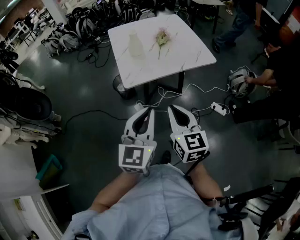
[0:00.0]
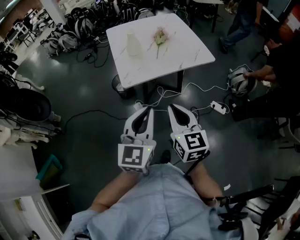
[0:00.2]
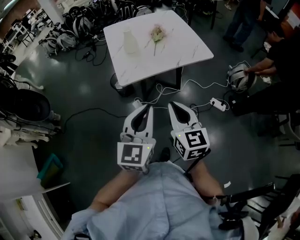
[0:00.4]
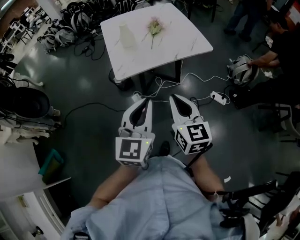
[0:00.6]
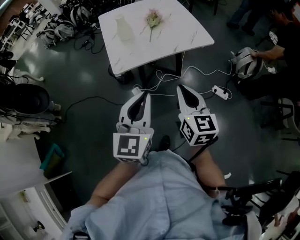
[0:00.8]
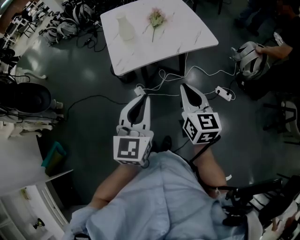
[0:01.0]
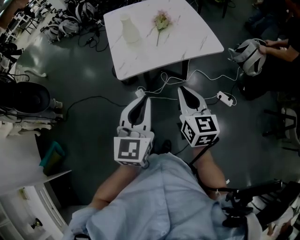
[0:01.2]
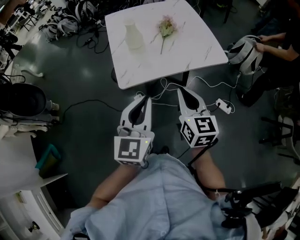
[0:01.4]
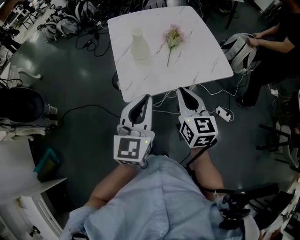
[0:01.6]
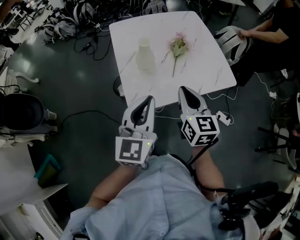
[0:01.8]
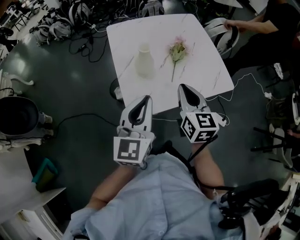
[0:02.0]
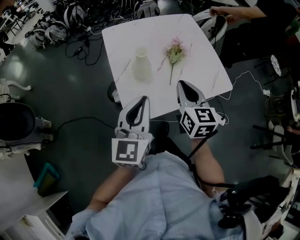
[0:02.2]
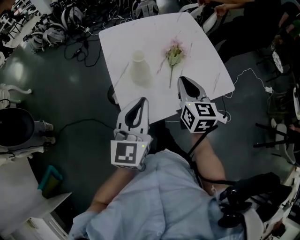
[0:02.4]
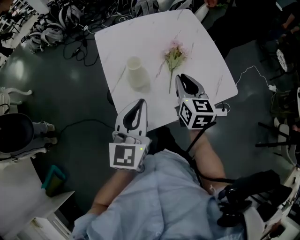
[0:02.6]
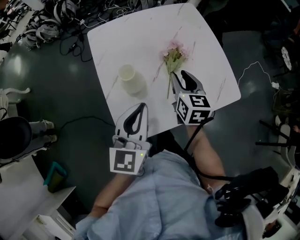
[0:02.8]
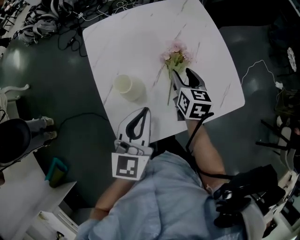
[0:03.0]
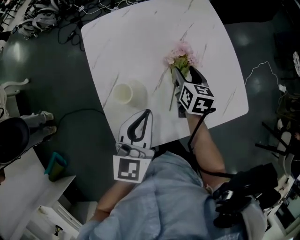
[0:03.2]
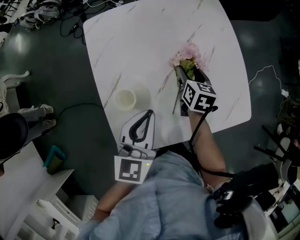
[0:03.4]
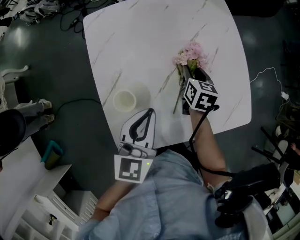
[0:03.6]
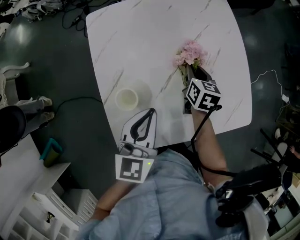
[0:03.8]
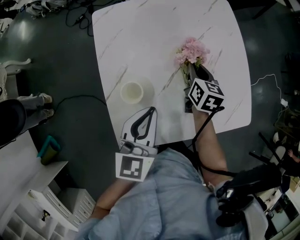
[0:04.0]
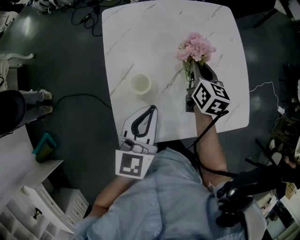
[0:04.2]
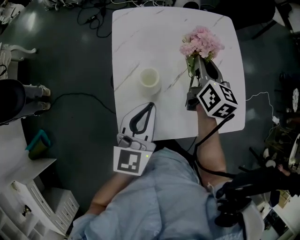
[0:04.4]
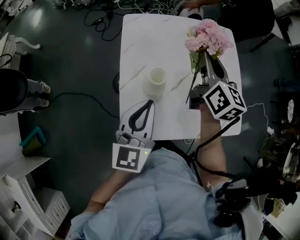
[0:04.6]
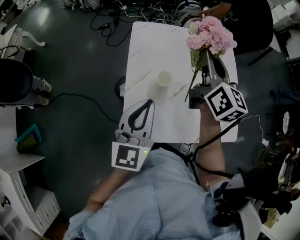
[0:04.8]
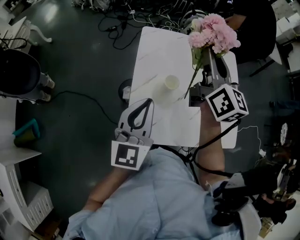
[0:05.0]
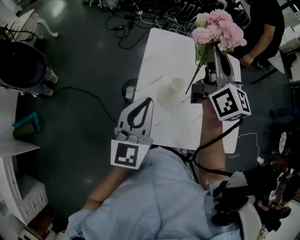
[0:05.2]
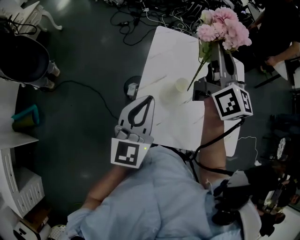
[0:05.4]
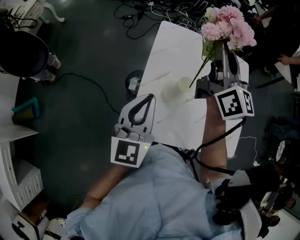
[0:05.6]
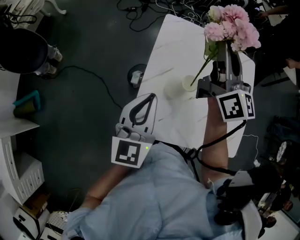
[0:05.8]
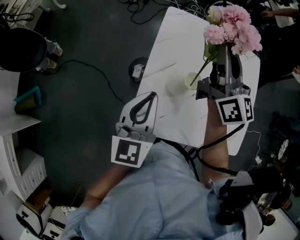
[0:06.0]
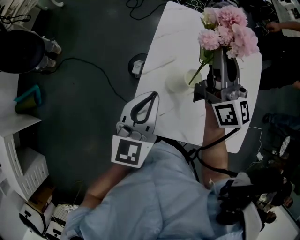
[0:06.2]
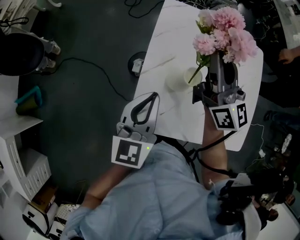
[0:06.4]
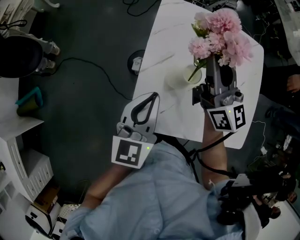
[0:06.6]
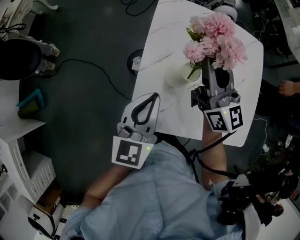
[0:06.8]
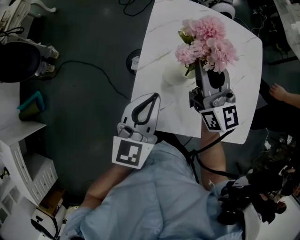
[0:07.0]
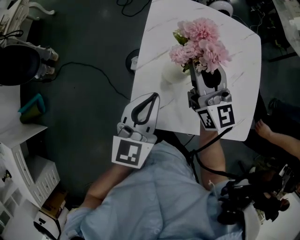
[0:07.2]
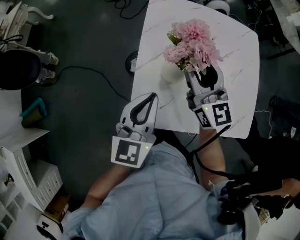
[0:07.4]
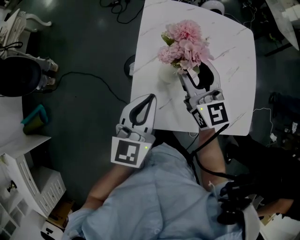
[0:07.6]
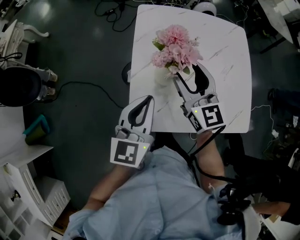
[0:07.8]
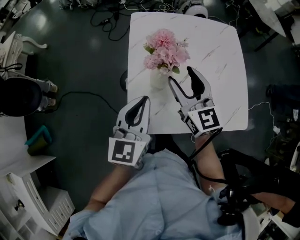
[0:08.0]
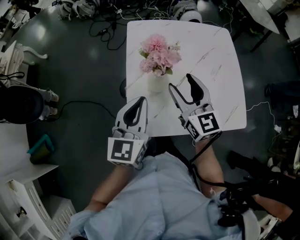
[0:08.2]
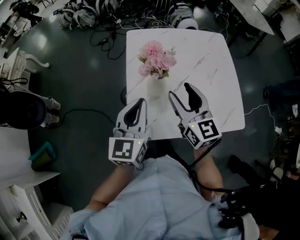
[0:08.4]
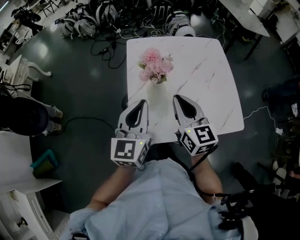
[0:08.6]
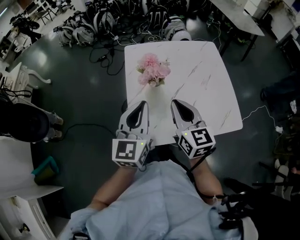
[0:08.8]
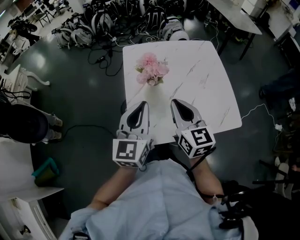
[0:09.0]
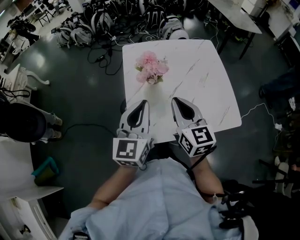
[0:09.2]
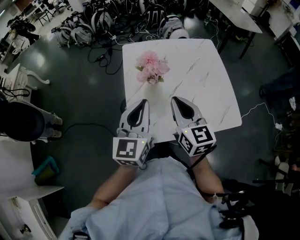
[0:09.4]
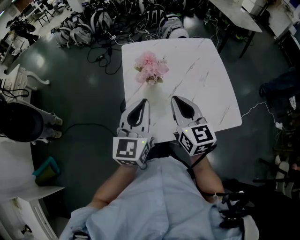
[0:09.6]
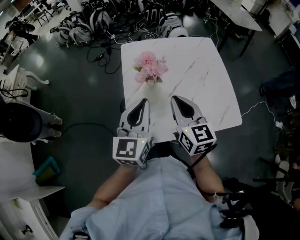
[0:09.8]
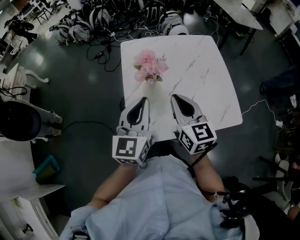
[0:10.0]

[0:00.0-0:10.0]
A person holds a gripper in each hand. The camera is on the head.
0.0 to 1.4 s: The two grippers go approximately 15 cm forward.
1.4 to 2.8 s: Both grippers move forward, some 35 cm. The right gripper opens its fingers.
2.8 to 4.2 s: The right gripper moves forward, roughly 10 cm, travels downward and back again, approximately 15 cm each way, and closes its fingers.
4.2 to 5.8 s: The left gripper is displaced to the left by roughly 15 cm, and turns by about 30 degrees. Meanwhile the right gripper goes about 30 cm upward and to the left, and angles its fingers upward, by about 40 degrees.
5.8 to 7.2 s: The right gripper is displaced downward and backward by about 10 cm.
7.2 to 8.6 s: The right gripper travels backward by some 10 cm, changes its angle by roughly 20 degrees, and closes, while the left gripper heads upward, covering roughly 5 cm.
8.6 to 10.0 s: There are only small adjustments of the grippers.

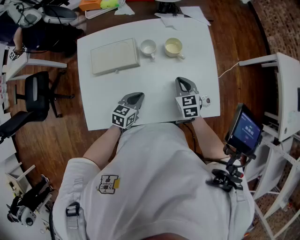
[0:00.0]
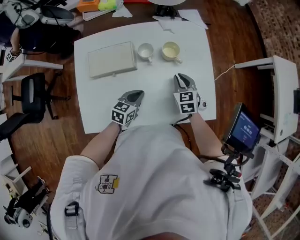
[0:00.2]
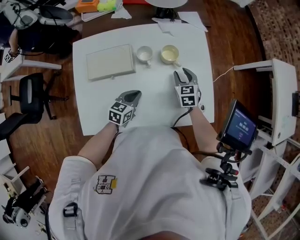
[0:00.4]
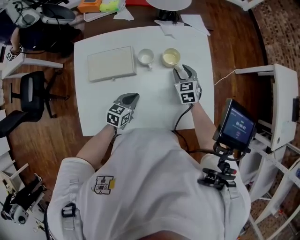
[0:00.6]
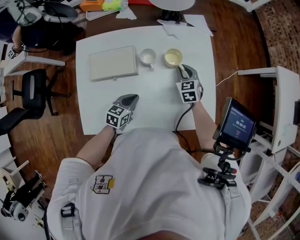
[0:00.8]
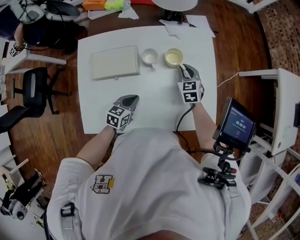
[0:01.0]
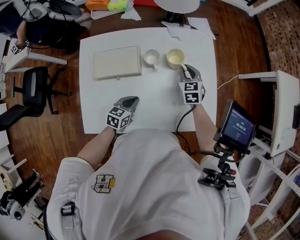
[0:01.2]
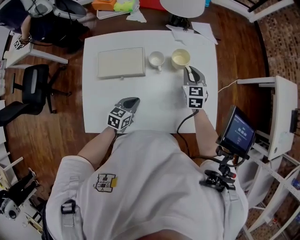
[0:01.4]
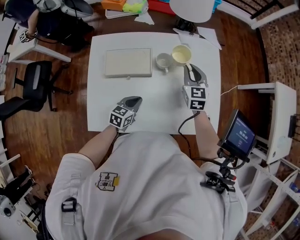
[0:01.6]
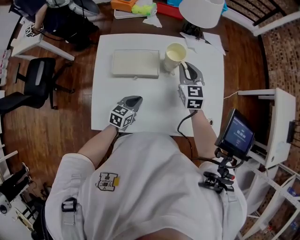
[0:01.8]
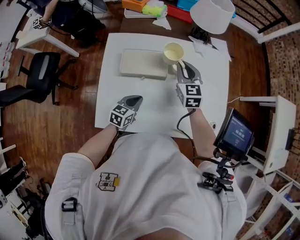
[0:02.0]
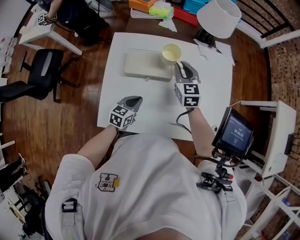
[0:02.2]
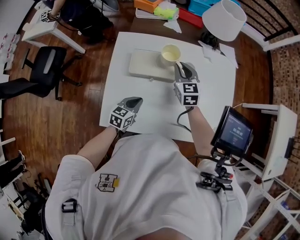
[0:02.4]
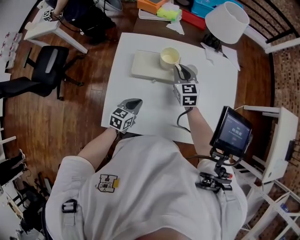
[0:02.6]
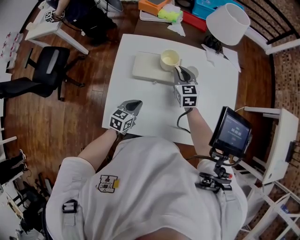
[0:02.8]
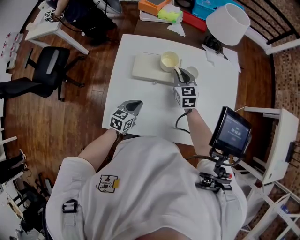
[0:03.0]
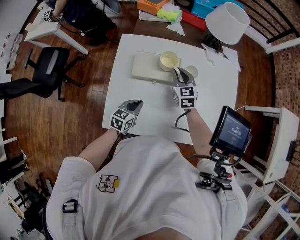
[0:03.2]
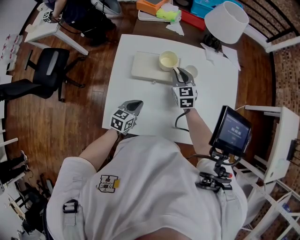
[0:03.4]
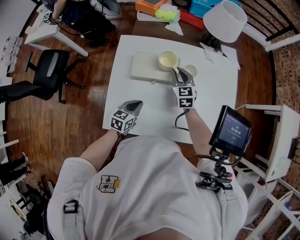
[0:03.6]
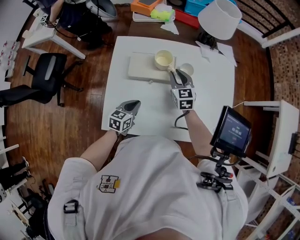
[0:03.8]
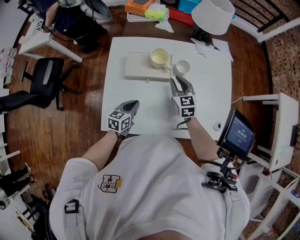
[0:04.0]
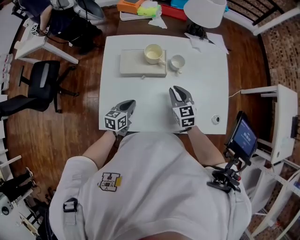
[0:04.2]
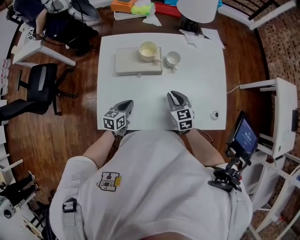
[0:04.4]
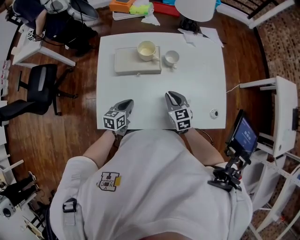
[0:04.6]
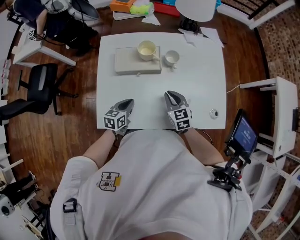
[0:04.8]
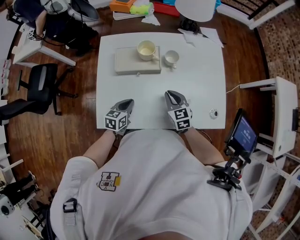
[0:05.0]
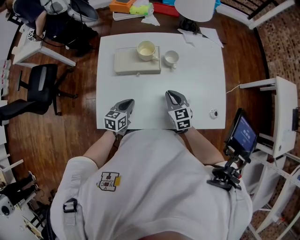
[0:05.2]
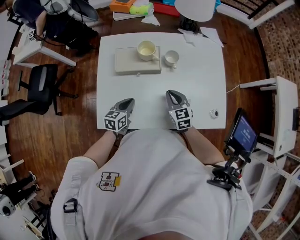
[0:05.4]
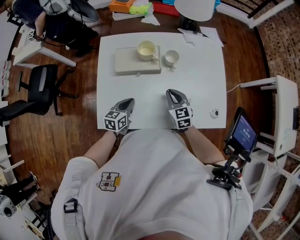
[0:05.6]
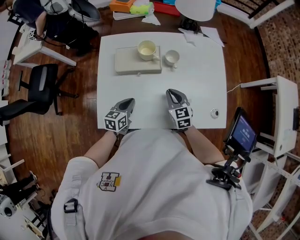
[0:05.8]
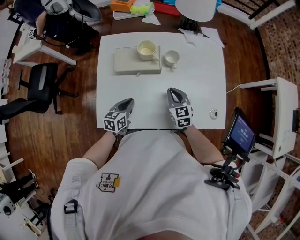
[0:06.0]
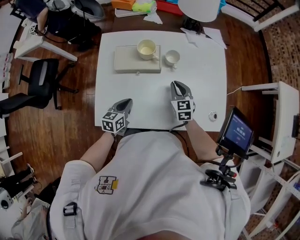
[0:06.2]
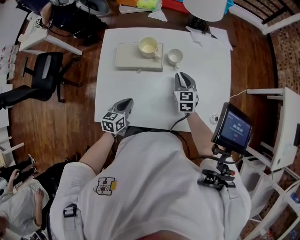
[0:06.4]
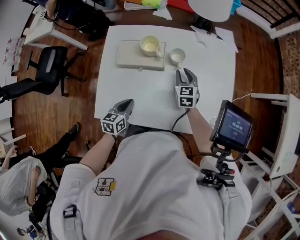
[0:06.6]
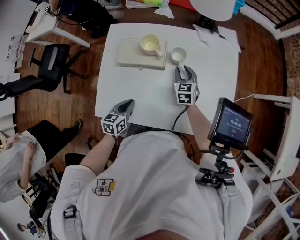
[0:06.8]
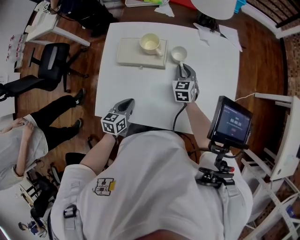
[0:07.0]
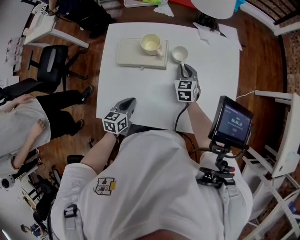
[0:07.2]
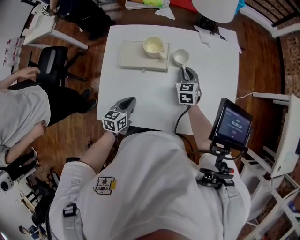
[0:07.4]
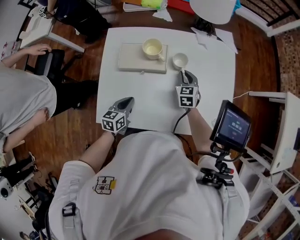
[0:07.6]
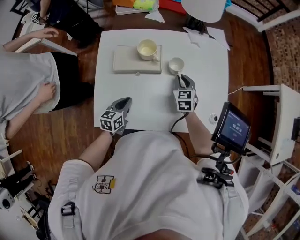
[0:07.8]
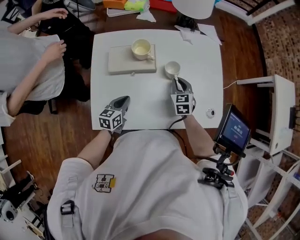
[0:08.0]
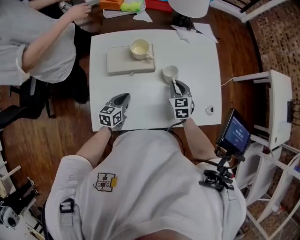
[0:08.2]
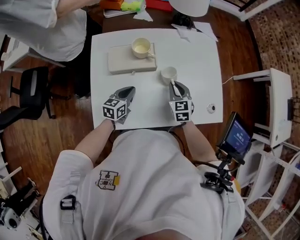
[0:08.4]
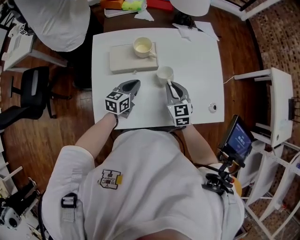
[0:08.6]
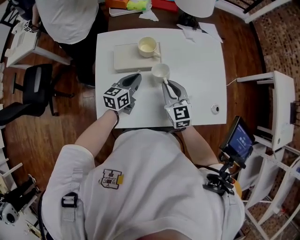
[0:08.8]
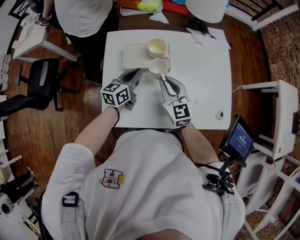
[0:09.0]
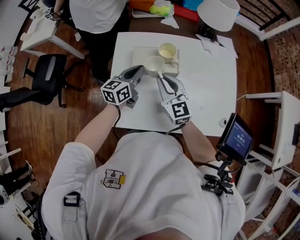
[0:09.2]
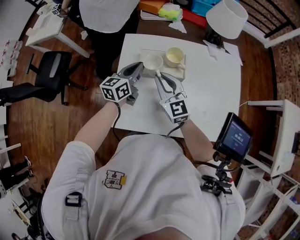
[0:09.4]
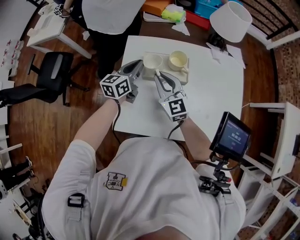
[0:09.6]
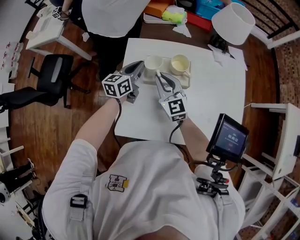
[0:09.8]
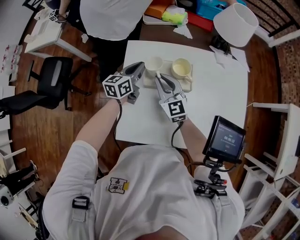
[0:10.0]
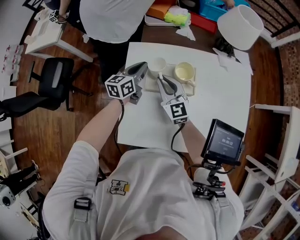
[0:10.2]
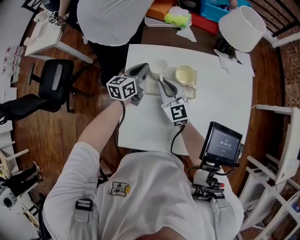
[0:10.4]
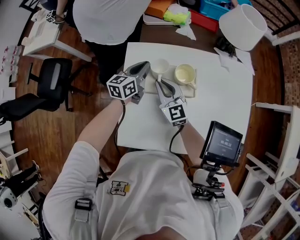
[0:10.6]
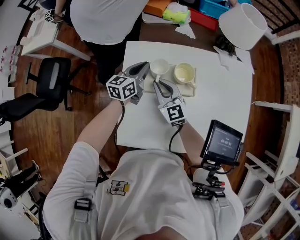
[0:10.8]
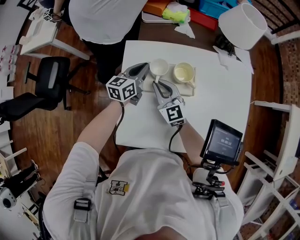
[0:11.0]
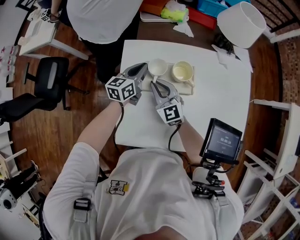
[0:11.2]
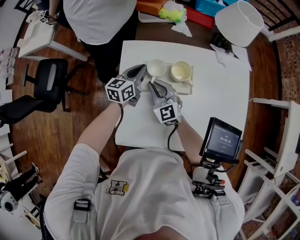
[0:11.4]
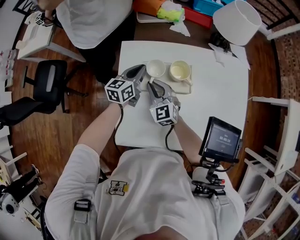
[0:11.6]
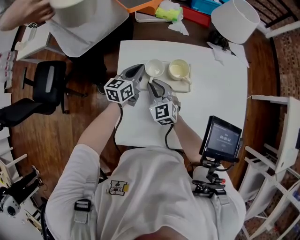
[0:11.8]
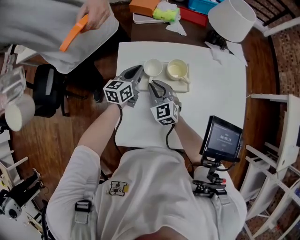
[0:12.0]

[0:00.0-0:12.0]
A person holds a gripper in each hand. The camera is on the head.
0.0 to 1.6 s: The right gripper heads forward, upward and to the left, covering approximately 15 cm, and opens, then closes again. Meanwhile the left gripper heads to the left, covering roughly 5 cm.
1.6 to 3.0 s: The left gripper goes roughly 10 cm to the left, while the right gripper is displaced to the left by approximately 20 cm.
3.0 to 4.4 s: The right gripper moves backward and to the right, roughly 20 cm.
4.4 to 6.0 s: There are only small adjustments of the grippers.
6.0 to 7.6 s: The right gripper is displaced forward by about 10 cm.
7.6 to 9.0 s: The left gripper goes about 15 cm forward and upward. Meanwhile the right gripper is displaced upward, to the left and backward by about 20 cm, and changes its angle by roughly 30 degrees.
9.0 to 10.4 s: The two grippers go some 15 cm forward and to the left.
10.4 to 12.0 s: The right gripper travels downward by some 5 cm.

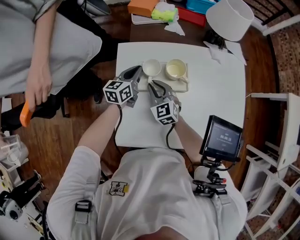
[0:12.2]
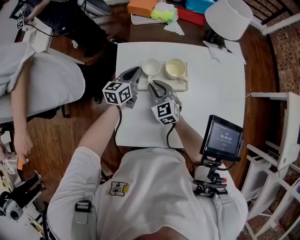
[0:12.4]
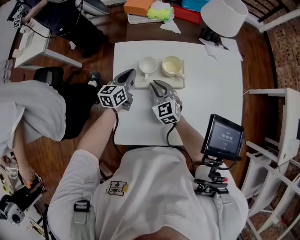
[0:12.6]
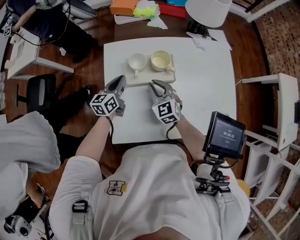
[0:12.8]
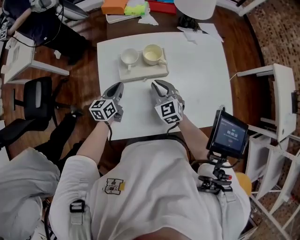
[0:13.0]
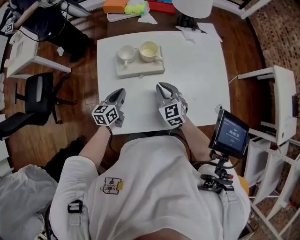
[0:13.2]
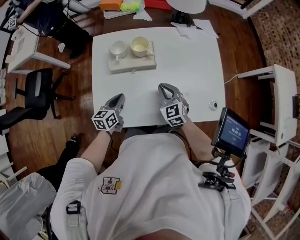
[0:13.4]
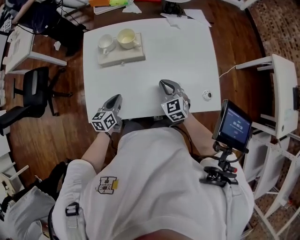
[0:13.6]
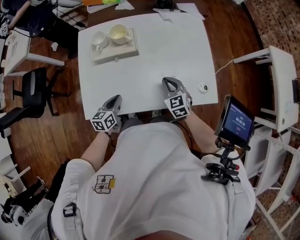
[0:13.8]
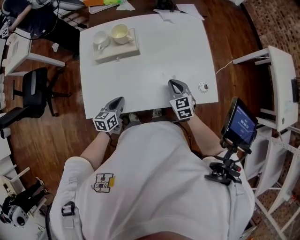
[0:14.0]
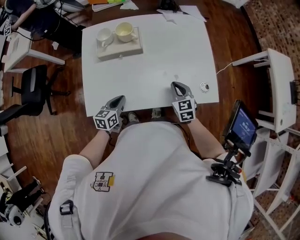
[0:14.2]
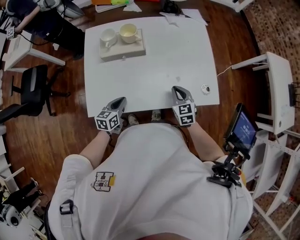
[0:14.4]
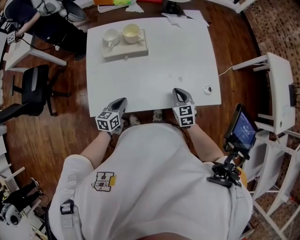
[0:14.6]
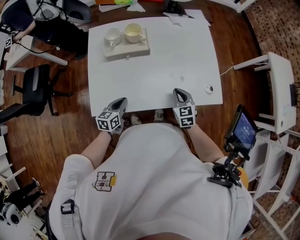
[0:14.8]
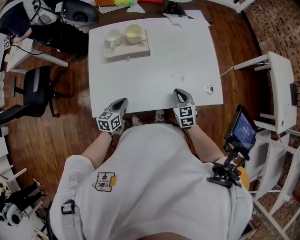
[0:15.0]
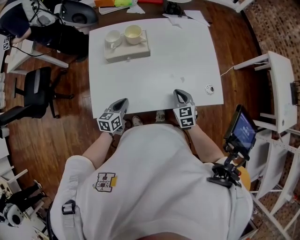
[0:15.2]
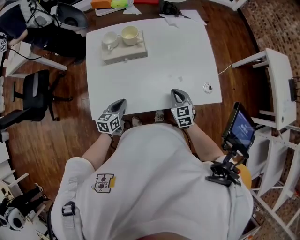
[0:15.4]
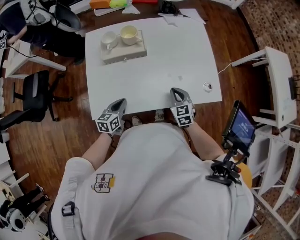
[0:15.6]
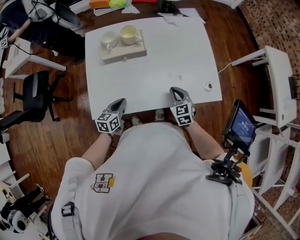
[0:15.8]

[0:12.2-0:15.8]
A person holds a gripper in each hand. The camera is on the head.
12.2 to 14.0 s: The right gripper goes some 35 cm to the right and backward. The left gripper travels backward and to the right by some 35 cm.
14.0 to 15.8 s: The right gripper changes place by about 5 cm.
